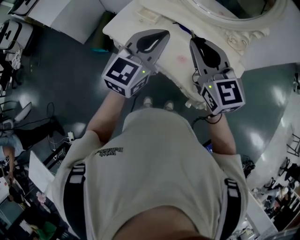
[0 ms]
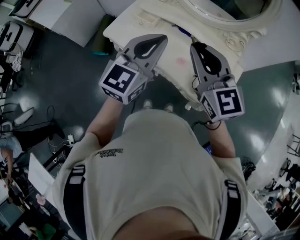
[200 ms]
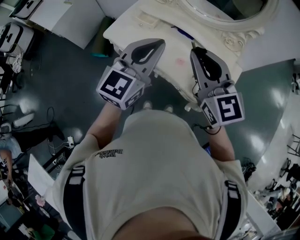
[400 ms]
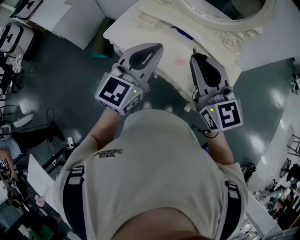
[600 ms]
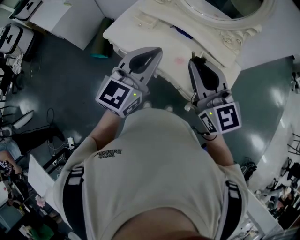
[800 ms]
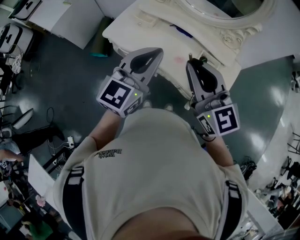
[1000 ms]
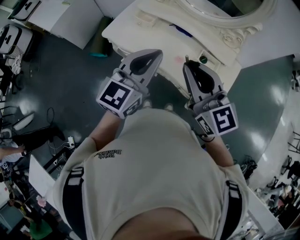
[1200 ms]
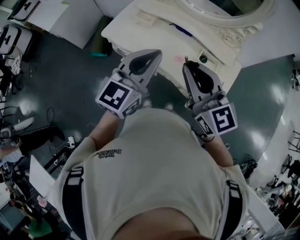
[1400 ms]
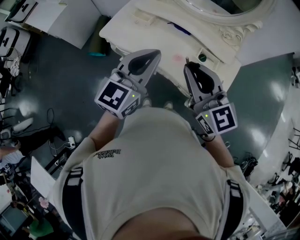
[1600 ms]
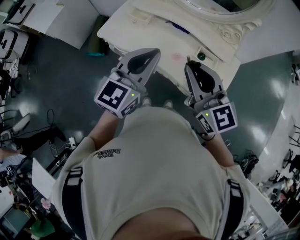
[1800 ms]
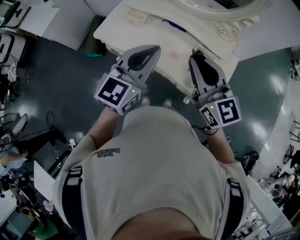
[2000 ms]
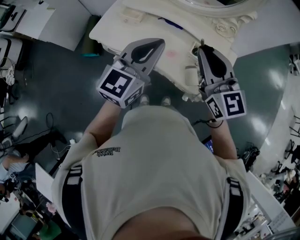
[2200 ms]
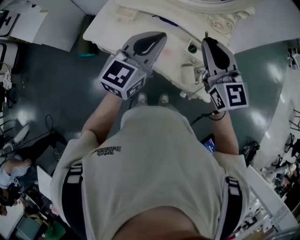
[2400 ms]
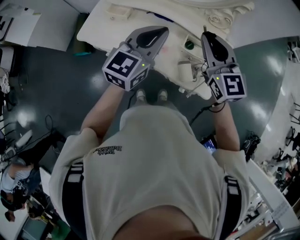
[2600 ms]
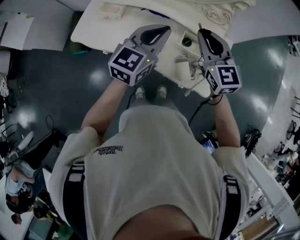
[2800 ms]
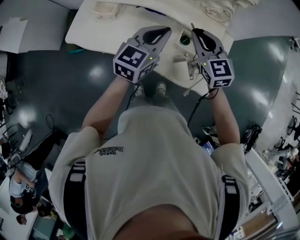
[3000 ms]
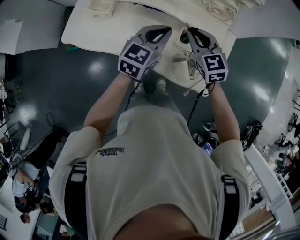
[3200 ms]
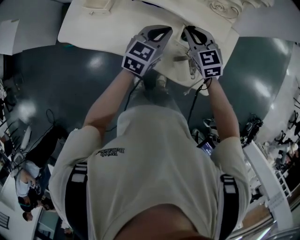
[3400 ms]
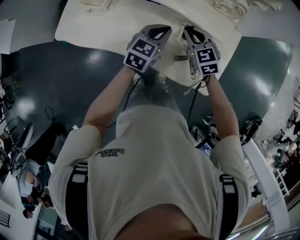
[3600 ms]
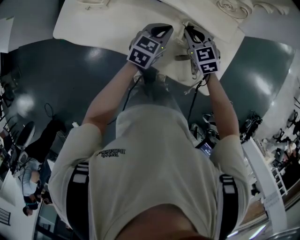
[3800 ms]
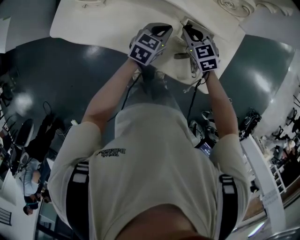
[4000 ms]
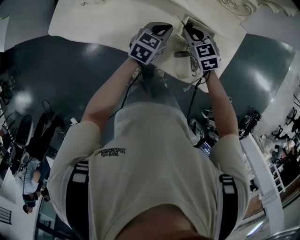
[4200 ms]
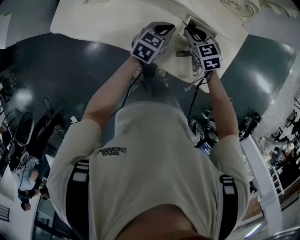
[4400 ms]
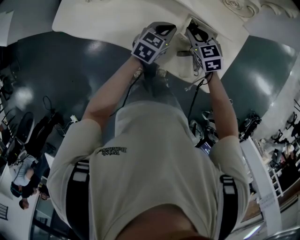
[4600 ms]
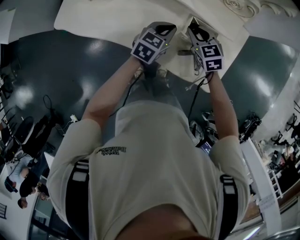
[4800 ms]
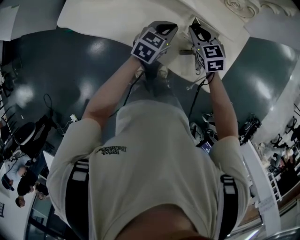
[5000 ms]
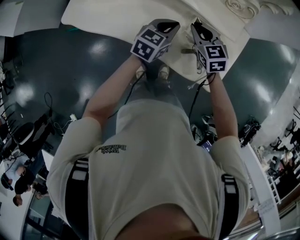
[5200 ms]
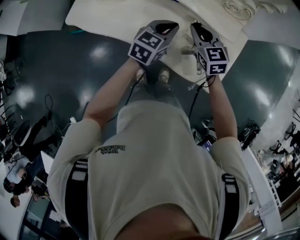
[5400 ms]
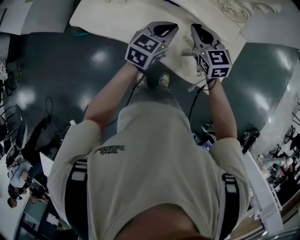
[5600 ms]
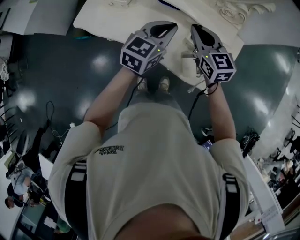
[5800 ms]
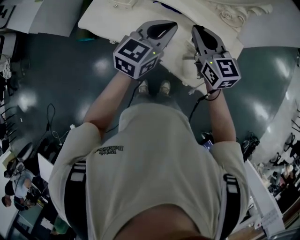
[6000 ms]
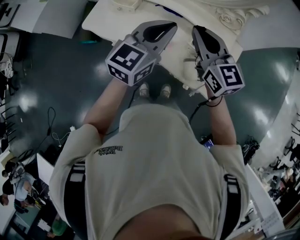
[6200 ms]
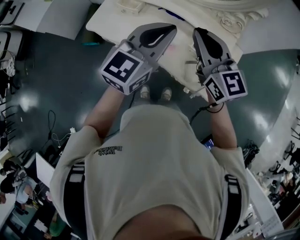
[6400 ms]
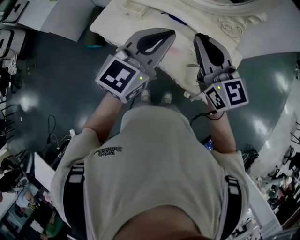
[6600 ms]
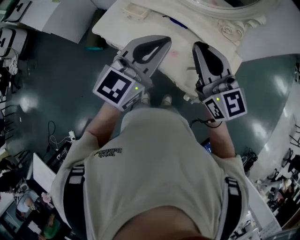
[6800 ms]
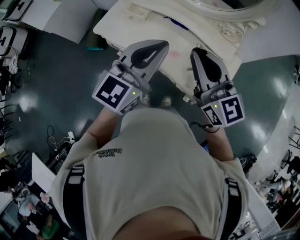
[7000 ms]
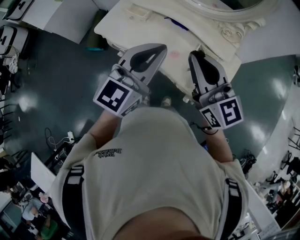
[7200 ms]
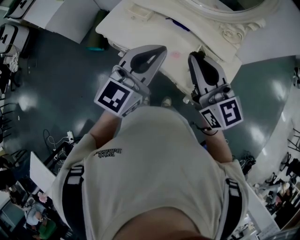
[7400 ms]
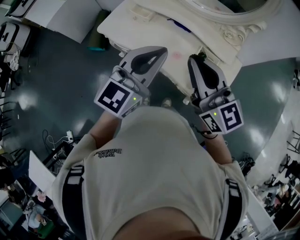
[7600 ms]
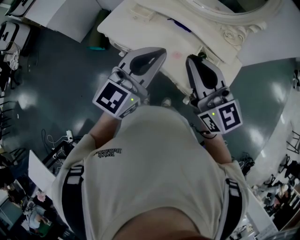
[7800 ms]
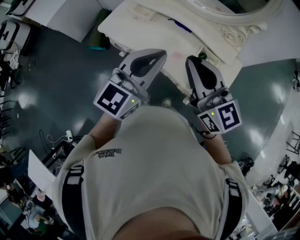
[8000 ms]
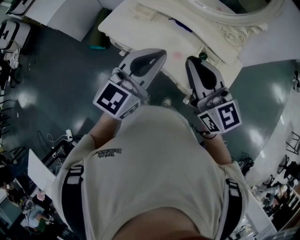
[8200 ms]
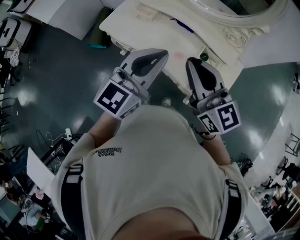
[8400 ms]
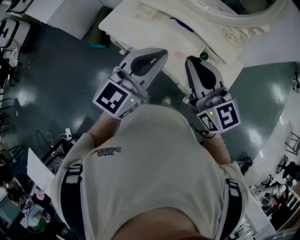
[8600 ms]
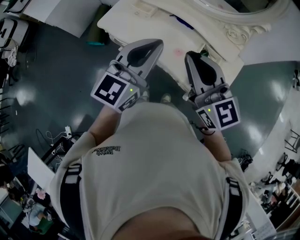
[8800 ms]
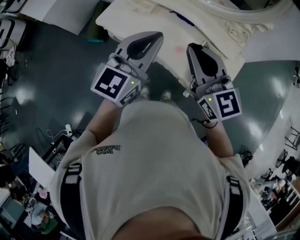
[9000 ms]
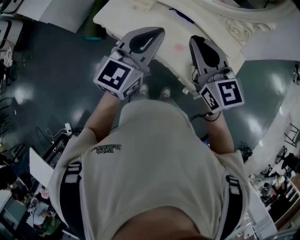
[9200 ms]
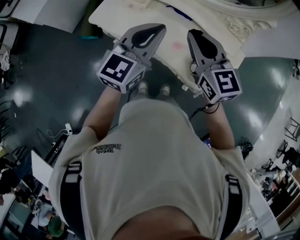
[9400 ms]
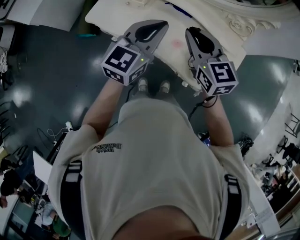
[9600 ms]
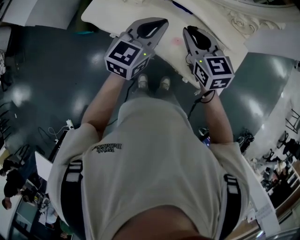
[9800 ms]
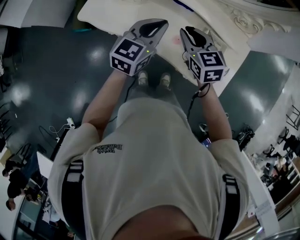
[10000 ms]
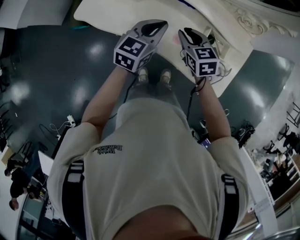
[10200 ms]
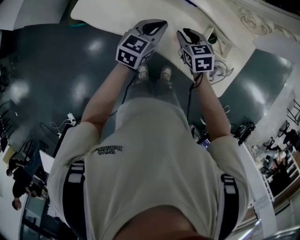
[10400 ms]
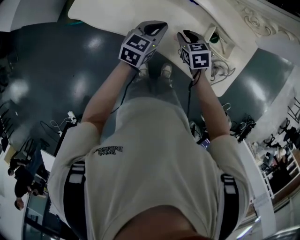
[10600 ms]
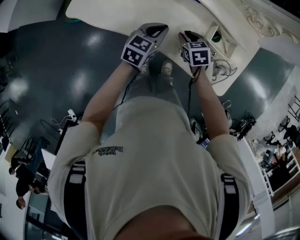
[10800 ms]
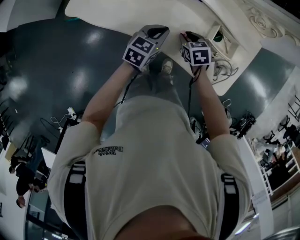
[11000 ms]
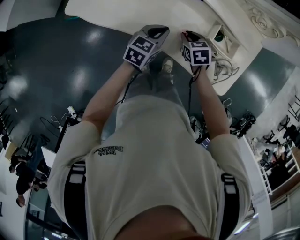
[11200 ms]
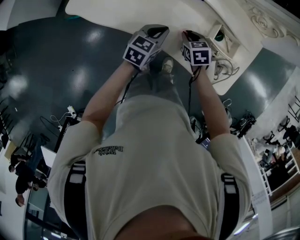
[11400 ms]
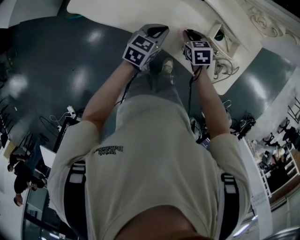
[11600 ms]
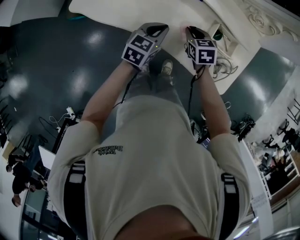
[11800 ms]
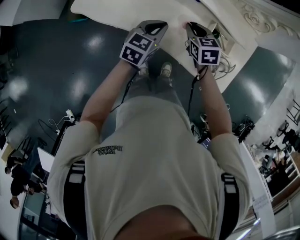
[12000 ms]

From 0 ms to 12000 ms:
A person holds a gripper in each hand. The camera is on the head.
From 0 ms to 1600 ms: Both grippers travel together backward, some 10 cm.
From 1600 ms to 3000 ms: Both grippers move forward, downward and to the right, roughly 25 cm. The right gripper turns by about 20 degrees.
From 3000 ms to 4400 ms: The two grippers go roughly 25 cm downward. The right gripper changes its angle by roughly 20 degrees; the left gripper turns by about 20 degrees.
From 4400 ms to 6000 ms: Both grippers move upward, about 25 cm. The left gripper rotates some 20 degrees. Meanwhile the right gripper angles its fingers upward, by approximately 30 degrees.
From 6000 ms to 7600 ms: The left gripper is displaced backward, upward and to the left by roughly 20 cm. Meanwhile the right gripper is displaced upward, backward and to the left by approximately 20 cm.
From 7600 ms to 9000 ms: The left gripper moves approximately 5 cm, while the right gripper changes place by about 5 cm.
From 9000 ms to 10400 ms: Both grippers travel together downward and forward, approximately 35 cm. The left gripper swivels approximately 30 degrees. The right gripper points its fingers about 40 degrees further downward, and opens up.
From 10400 ms to 12000 ms: The right gripper goes downward and returns, some 10 cm each way.

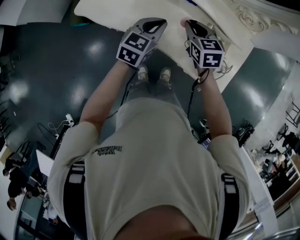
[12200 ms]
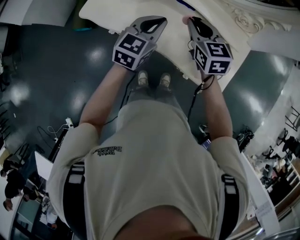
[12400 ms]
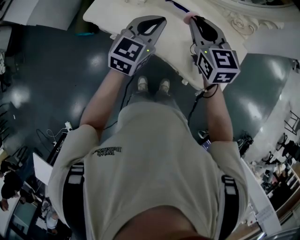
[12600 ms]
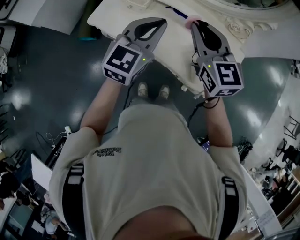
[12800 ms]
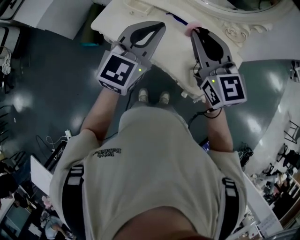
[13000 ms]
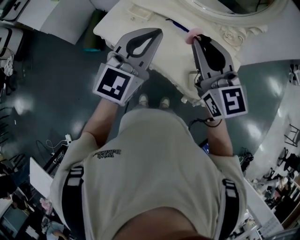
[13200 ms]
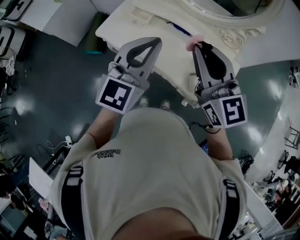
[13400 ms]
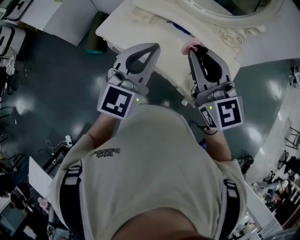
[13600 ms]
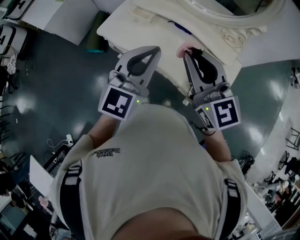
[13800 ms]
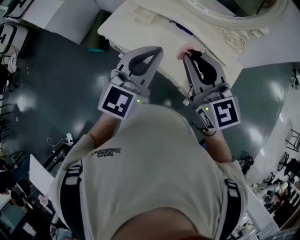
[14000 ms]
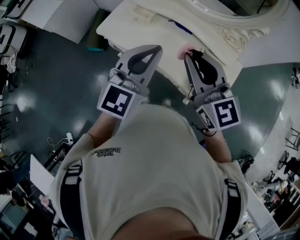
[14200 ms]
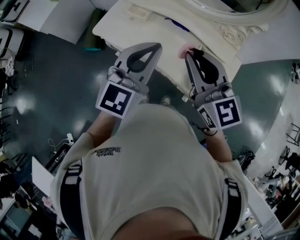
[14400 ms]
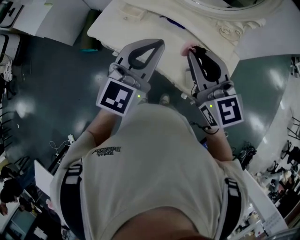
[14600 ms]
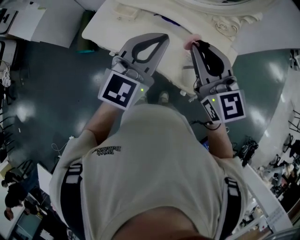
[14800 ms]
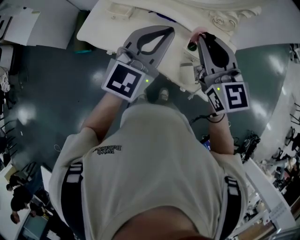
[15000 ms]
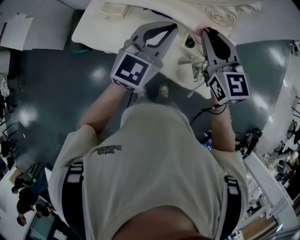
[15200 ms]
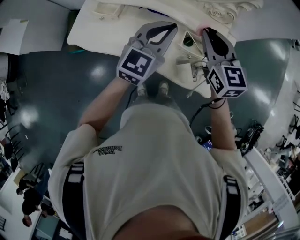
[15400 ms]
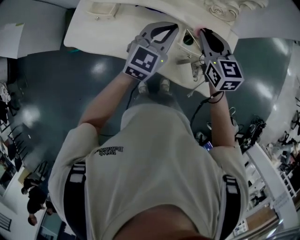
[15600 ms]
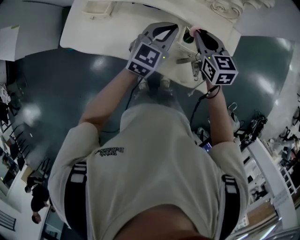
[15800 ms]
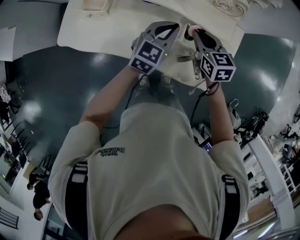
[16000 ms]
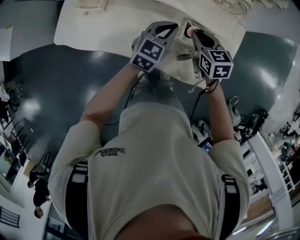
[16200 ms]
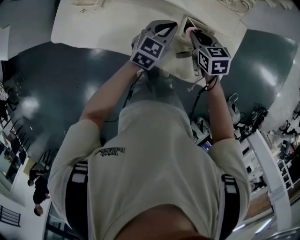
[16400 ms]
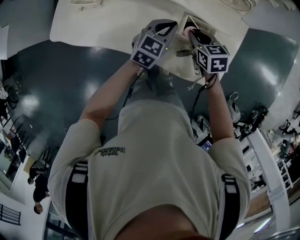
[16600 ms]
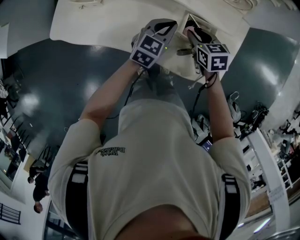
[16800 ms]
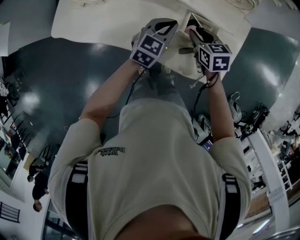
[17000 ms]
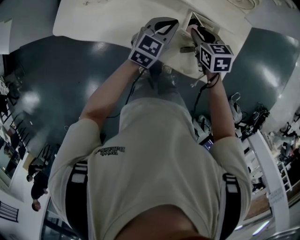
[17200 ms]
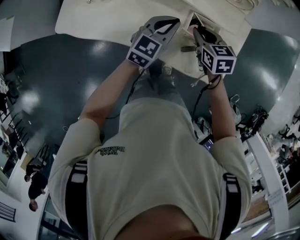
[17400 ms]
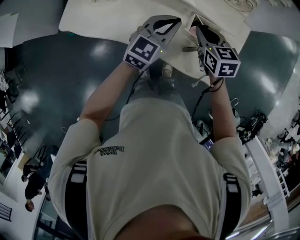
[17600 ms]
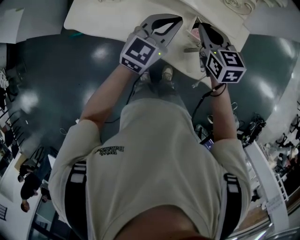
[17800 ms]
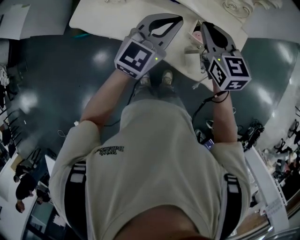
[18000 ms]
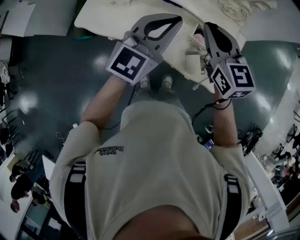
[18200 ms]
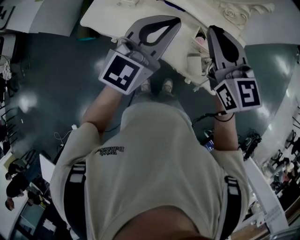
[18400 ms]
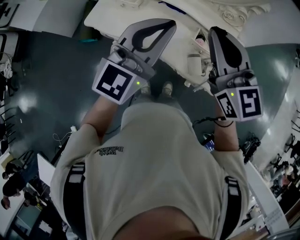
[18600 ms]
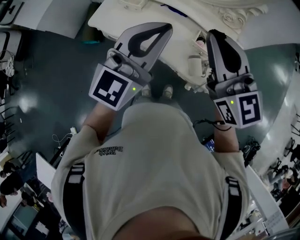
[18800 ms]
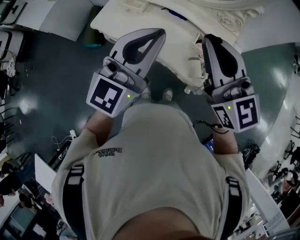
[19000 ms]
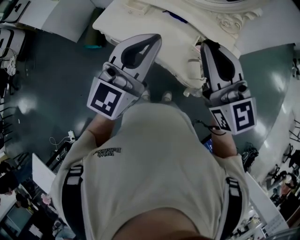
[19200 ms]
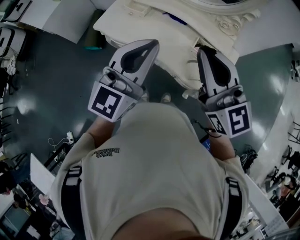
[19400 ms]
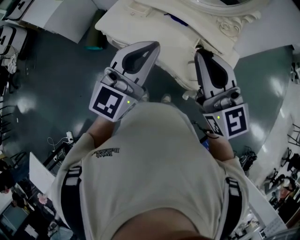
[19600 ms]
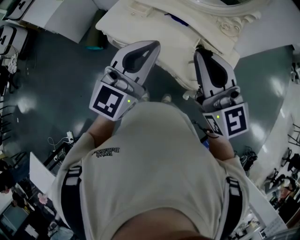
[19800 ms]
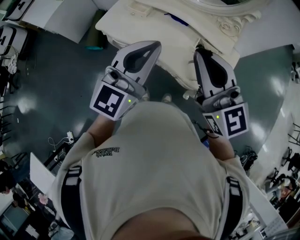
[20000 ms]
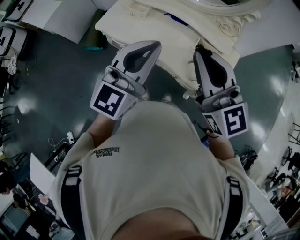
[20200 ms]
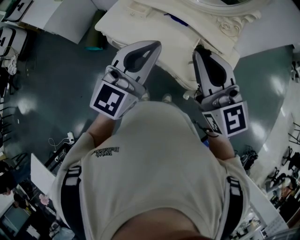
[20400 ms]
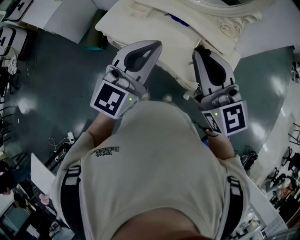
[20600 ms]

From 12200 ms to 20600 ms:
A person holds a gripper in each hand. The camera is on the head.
From 12200 ms to 13600 ms: Both grippers travel together upward and backward, about 35 cm. The right gripper tips its fingers upward by some 40 degrees. Meanwhile the left gripper rotates approximately 30 degrees.
From 13600 ms to 15000 ms: Both grippers travel together to the right and forward, approximately 10 cm.
From 15000 ms to 16400 ms: The two grippers go about 30 cm downward. The right gripper tilts its fingers approximately 40 degrees downward; the left gripper swivels approximately 30 degrees.
From 16400 ms to 17800 ms: The grippers both shift upward by about 15 cm.
From 17800 ms to 19200 ms: The left gripper moves upward, backward and to the left, some 30 cm, and swivels approximately 30 degrees, while the right gripper goes approximately 35 cm upward and backward, and tips its fingers upward by approximately 30 degrees.
From 19200 ms to 20600 ms: The grippers make only small movements.

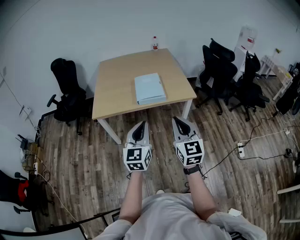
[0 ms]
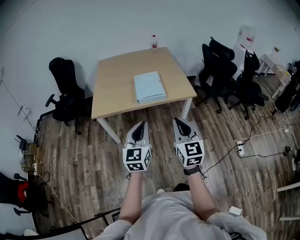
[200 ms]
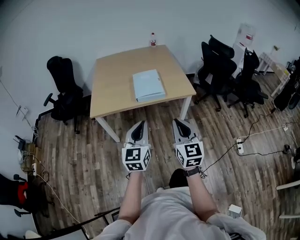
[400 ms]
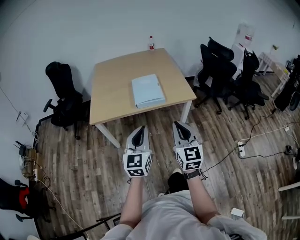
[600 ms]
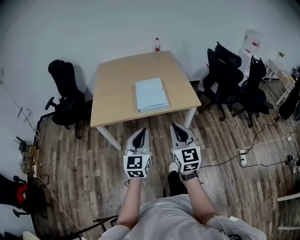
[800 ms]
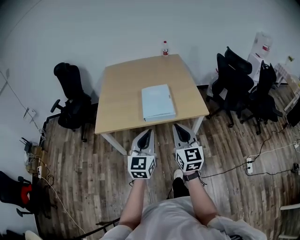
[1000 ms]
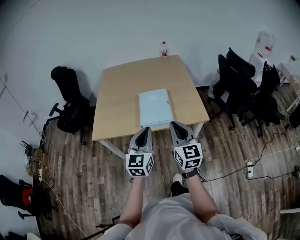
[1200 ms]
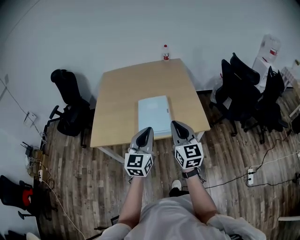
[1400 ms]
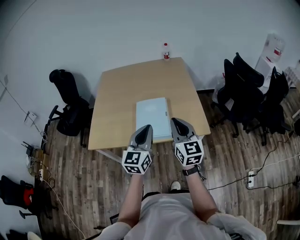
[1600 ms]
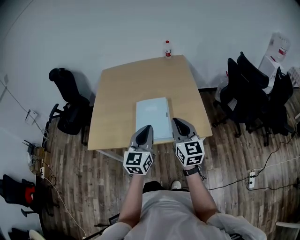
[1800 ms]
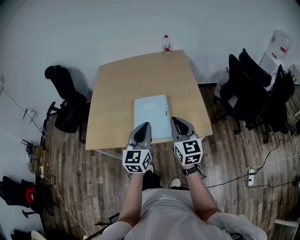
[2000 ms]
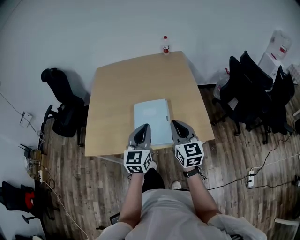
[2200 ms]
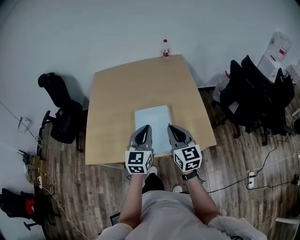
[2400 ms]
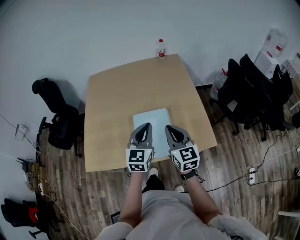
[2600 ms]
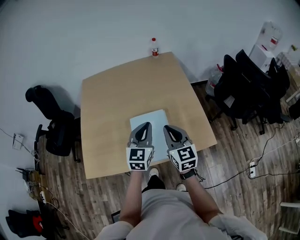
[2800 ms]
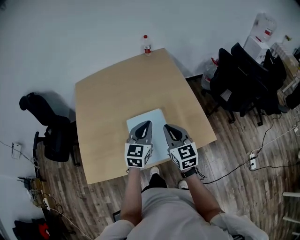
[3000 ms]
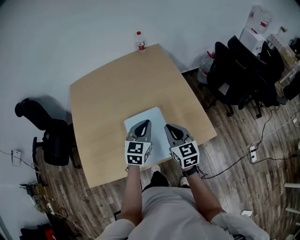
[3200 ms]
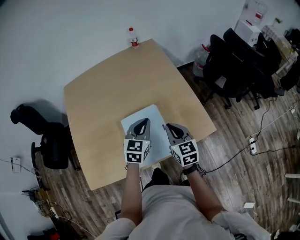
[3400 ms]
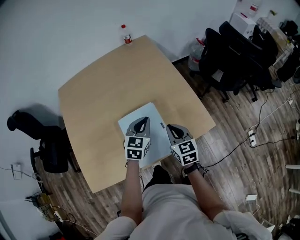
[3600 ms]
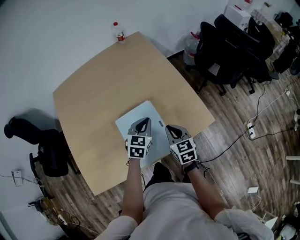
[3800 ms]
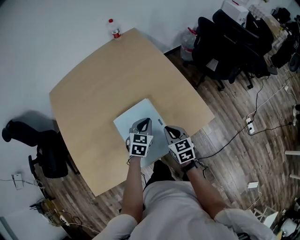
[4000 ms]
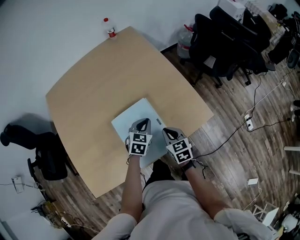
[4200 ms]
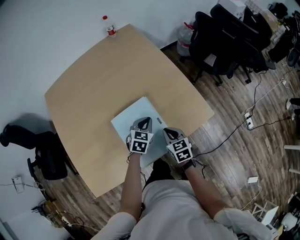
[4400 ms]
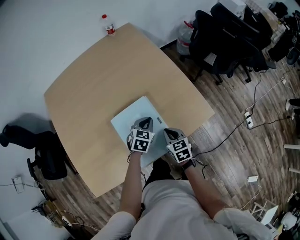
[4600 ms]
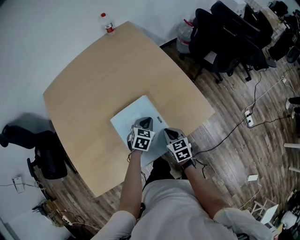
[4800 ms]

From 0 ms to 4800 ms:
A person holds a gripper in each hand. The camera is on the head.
From 0 ms to 1600 ms: The two grippers go roughly 35 cm forward.
From 1600 ms to 3200 ms: Both grippers travel together forward and downward, some 25 cm. The left gripper turns by some 30 degrees.
From 3200 ms to 4800 ms: The grippers both shift downward by roughly 20 cm. The left gripper rotates about 30 degrees. Meanwhile the right gripper rotates some 30 degrees.
